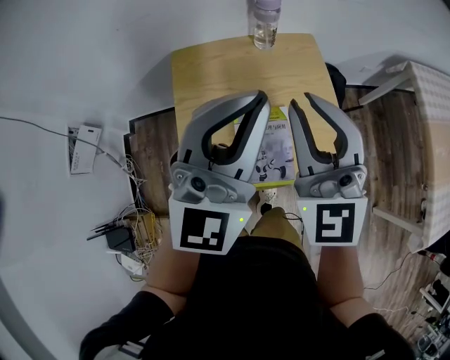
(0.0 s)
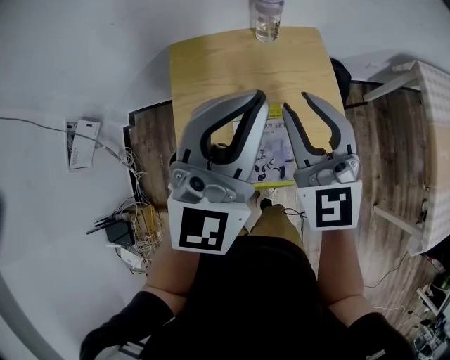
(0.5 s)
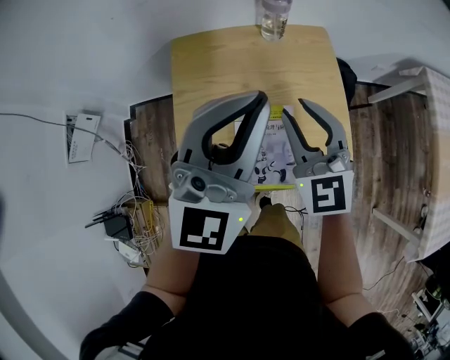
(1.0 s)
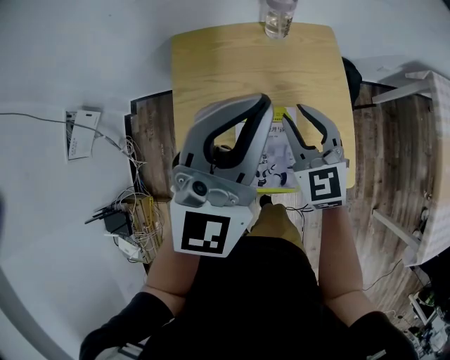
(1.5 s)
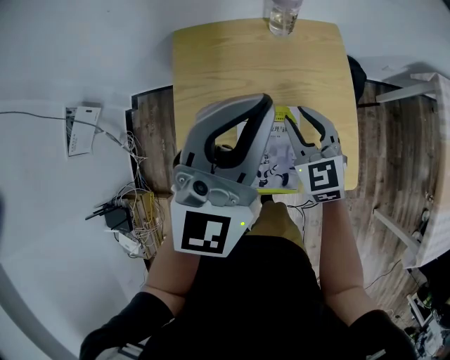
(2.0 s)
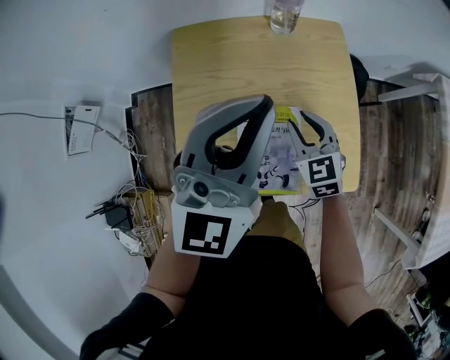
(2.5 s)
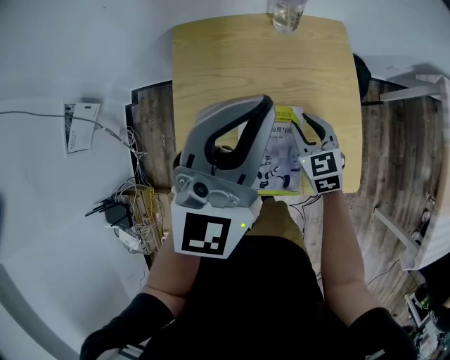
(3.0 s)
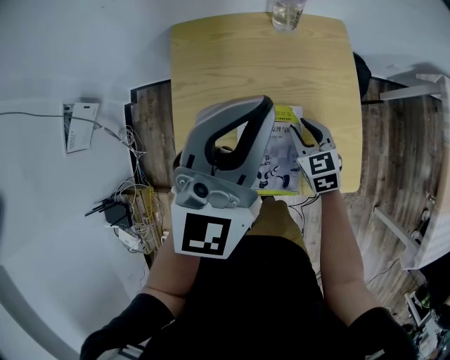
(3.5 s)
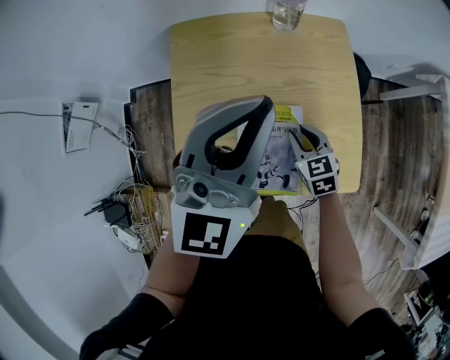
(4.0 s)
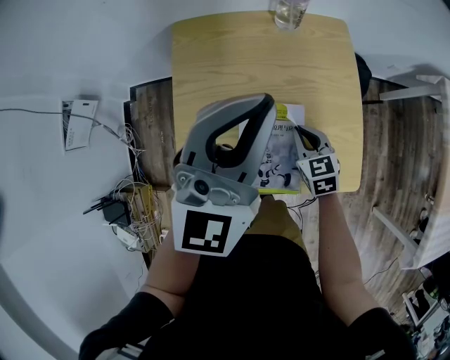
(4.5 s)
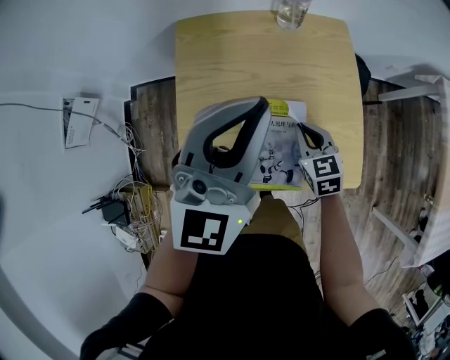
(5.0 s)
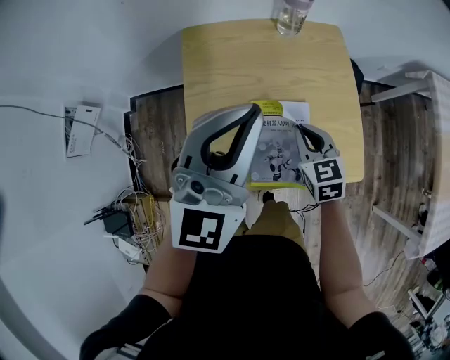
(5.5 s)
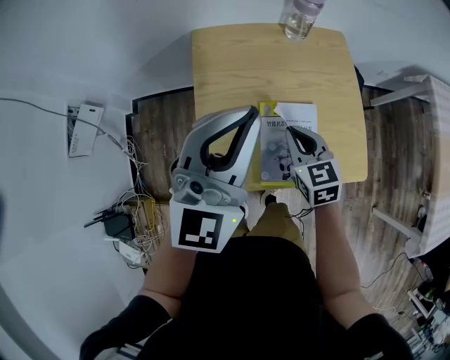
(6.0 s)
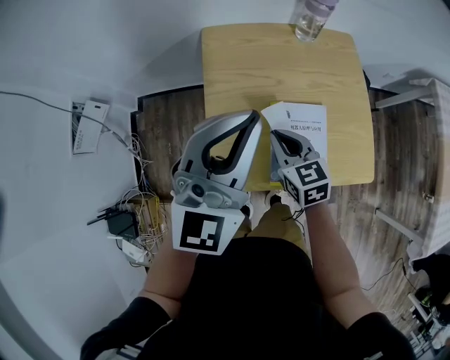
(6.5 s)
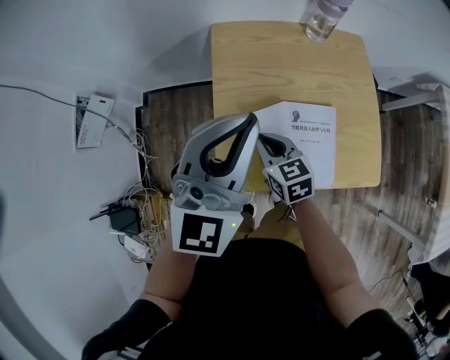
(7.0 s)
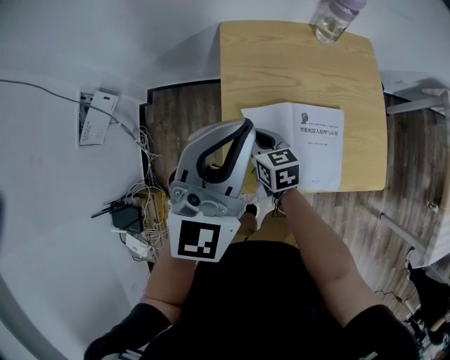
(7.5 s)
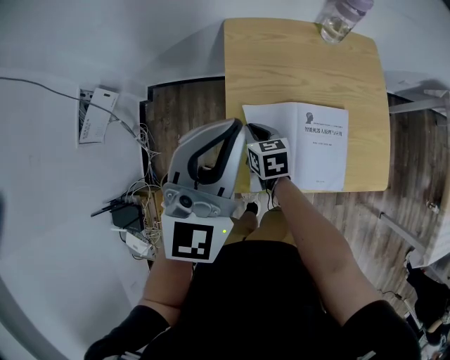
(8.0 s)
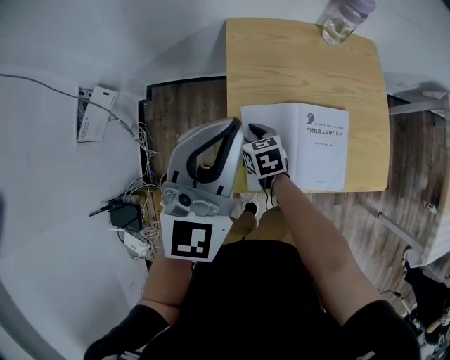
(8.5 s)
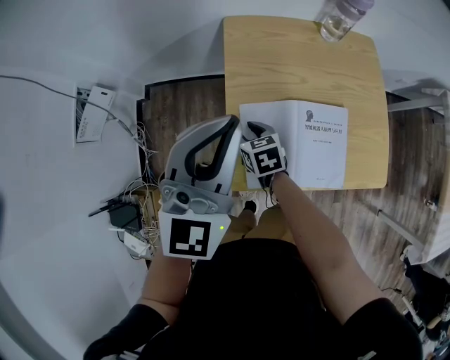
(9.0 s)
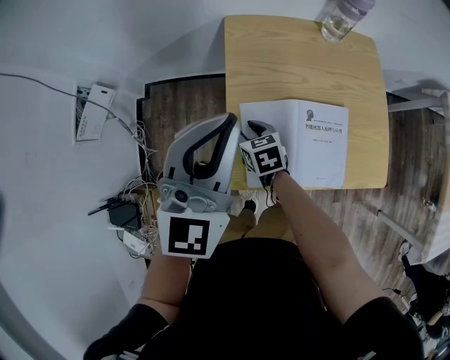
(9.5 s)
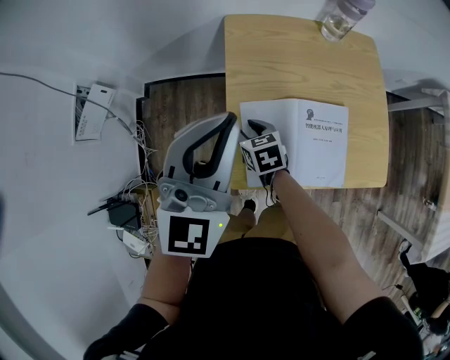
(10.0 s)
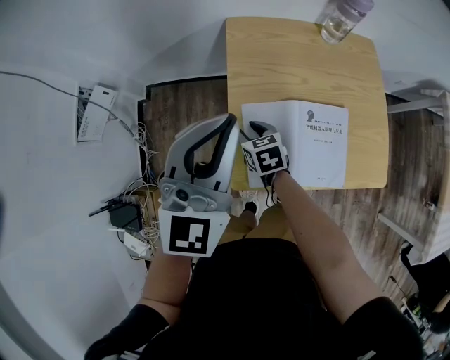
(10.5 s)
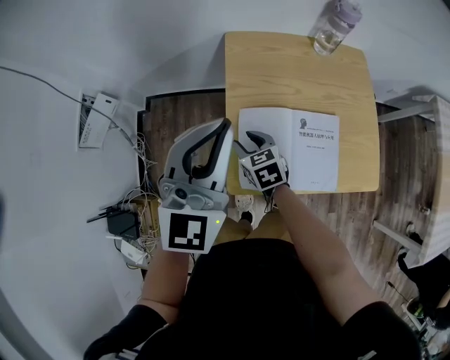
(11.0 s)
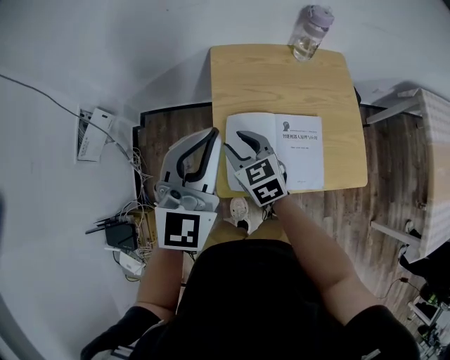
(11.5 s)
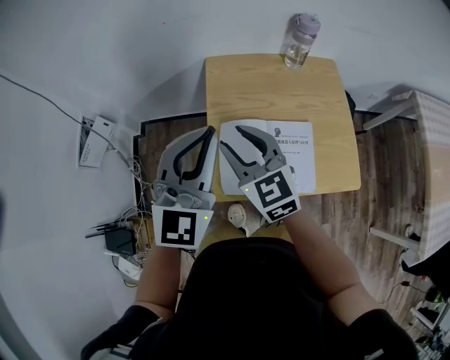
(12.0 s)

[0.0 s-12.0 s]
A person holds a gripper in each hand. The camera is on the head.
0.0 to 2.0 s: The left gripper goes some 10 cm downward and forward. The right gripper shifts roughly 25 cm downward, and angles its fingers downward, by roughly 30 degrees.
2.0 to 4.0 s: The right gripper moves downward, about 15 cm, and swivels some 20 degrees.
4.0 to 6.0 s: The left gripper travels to the left and backward by roughly 10 cm. The right gripper travels upward and to the left by some 15 cm.
6.0 to 8.0 s: The right gripper heads to the left and downward, covering approximately 20 cm, and swivels about 20 degrees. Meanwhile the left gripper is displaced to the left by approximately 10 cm.
8.0 to 10.0 s: The right gripper opens its fingers.
10.0 to 12.0 s: The left gripper ends up some 5 cm from where it was. Meanwhile the right gripper travels upward by some 25 cm, and angles its fingers upward, by about 30 degrees.

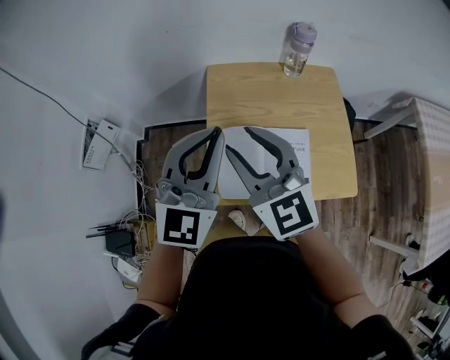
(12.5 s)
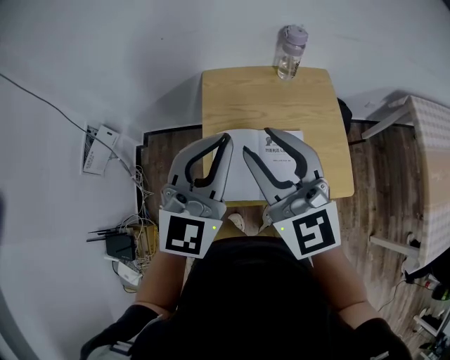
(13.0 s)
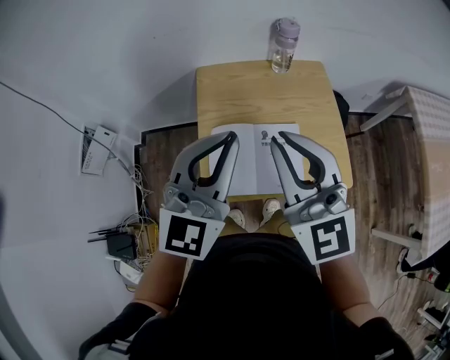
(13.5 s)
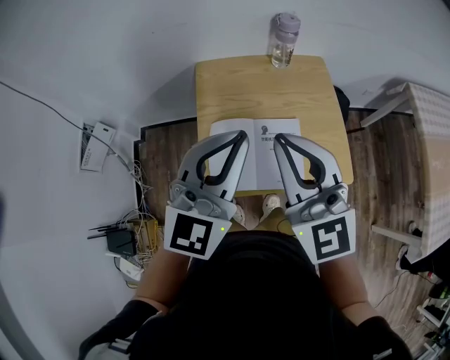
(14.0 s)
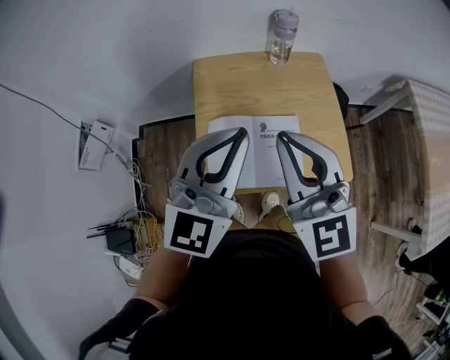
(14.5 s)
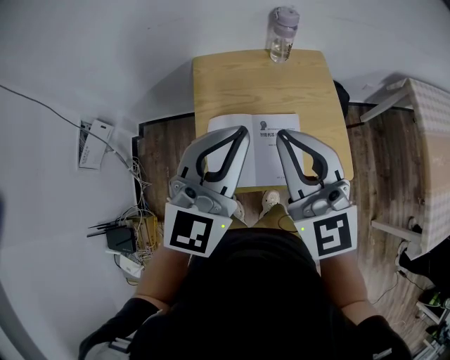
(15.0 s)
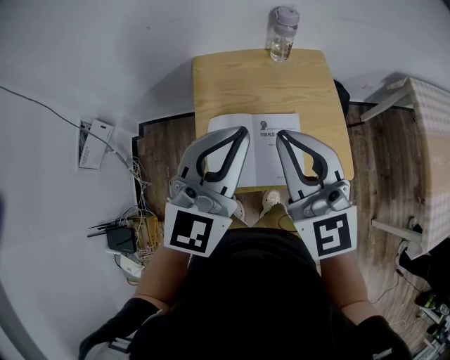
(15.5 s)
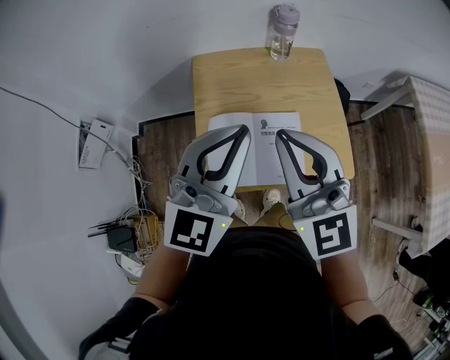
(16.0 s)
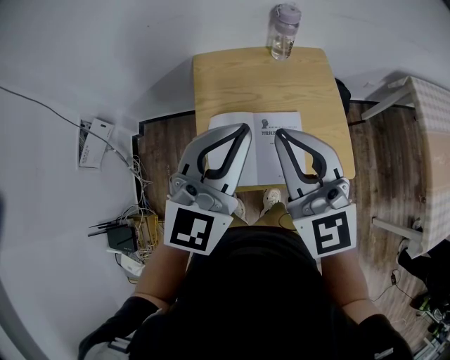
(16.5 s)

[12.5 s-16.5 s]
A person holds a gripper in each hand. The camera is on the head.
12.5 to 14.5 s: The right gripper moves to the right and upward, approximately 10 cm, and closes. Meanwhile the left gripper moves to the right, roughly 10 cm.
14.5 to 16.5 s: Neither gripper changes place.

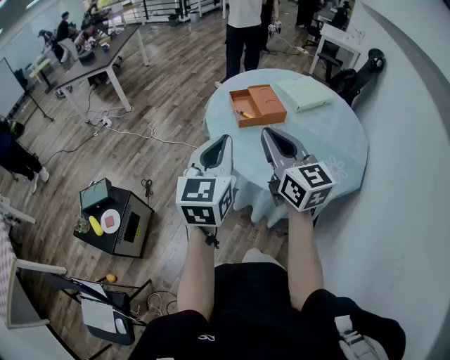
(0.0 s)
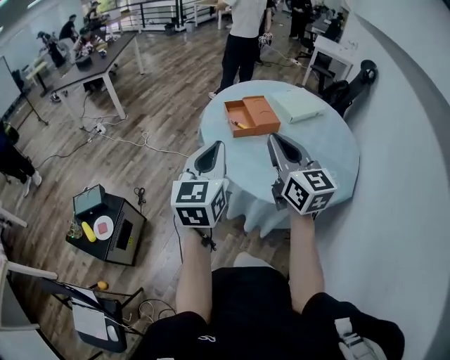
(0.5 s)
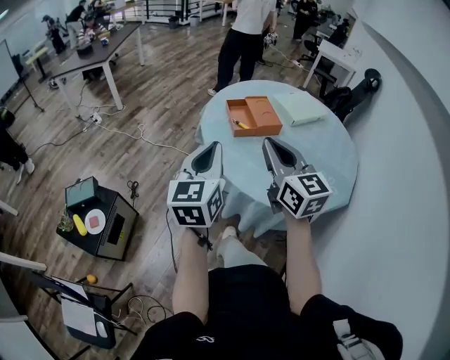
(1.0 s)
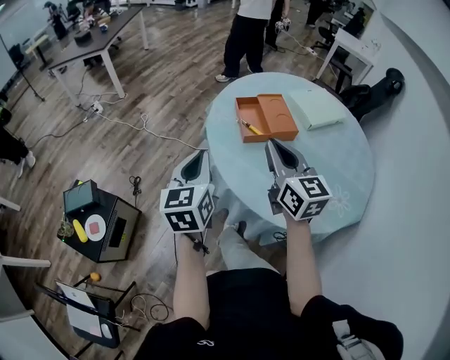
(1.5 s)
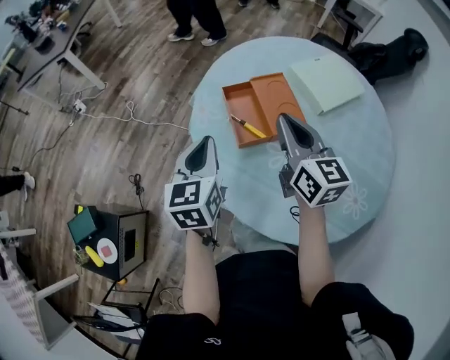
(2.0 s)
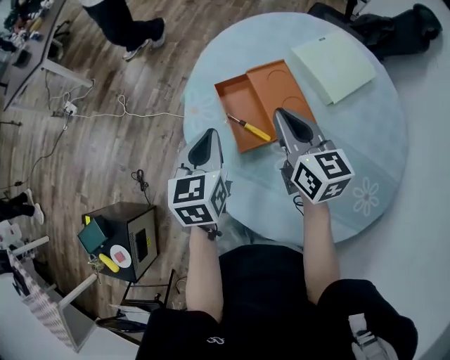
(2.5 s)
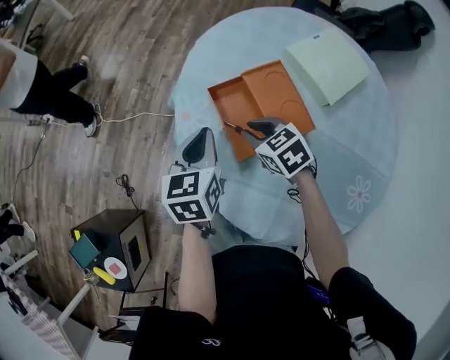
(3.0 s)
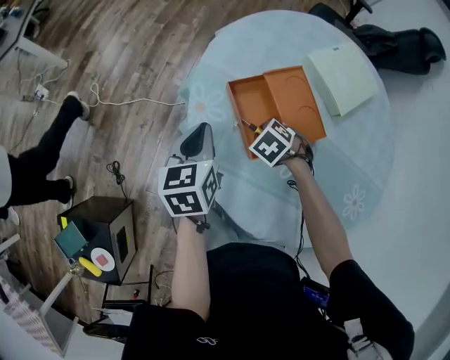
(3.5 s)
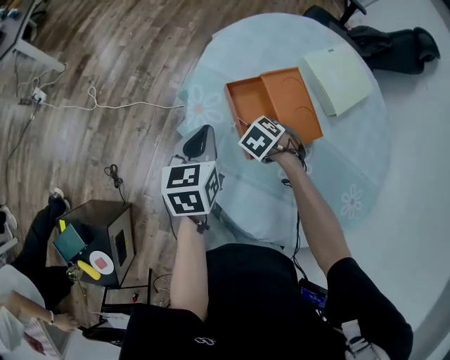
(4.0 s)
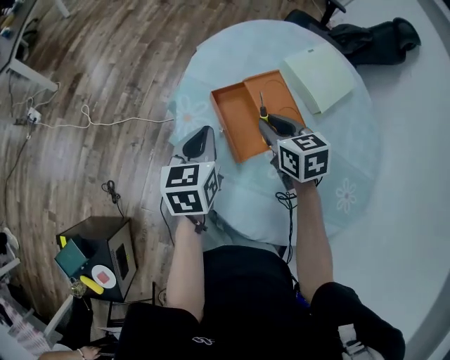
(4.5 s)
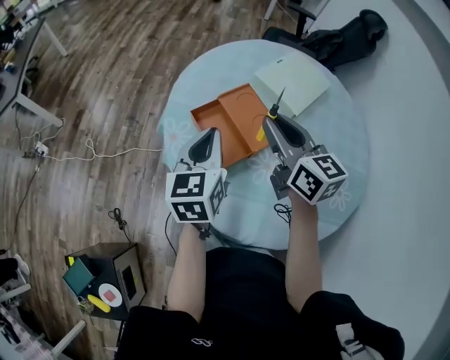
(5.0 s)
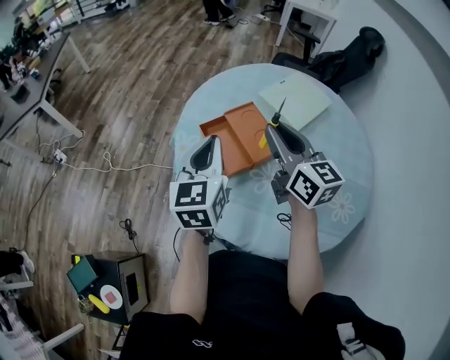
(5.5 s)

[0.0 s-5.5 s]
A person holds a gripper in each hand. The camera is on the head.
0.0 to 2.0 s: The right gripper moves forward, roughly 35 cm, while the left gripper moves forward and downward, approximately 40 cm, and turns by some 20 degrees.
2.0 to 3.5 s: The right gripper shifts approximately 30 cm downward, and tilts its fingers about 70 degrees downward, while the left gripper moves approximately 20 cm.
3.5 to 5.5 s: The right gripper moves upward, roughly 35 cm, and points its fingers approximately 80 degrees further upward. Meanwhile the left gripper moves upward, about 20 cm, and swivels approximately 30 degrees.

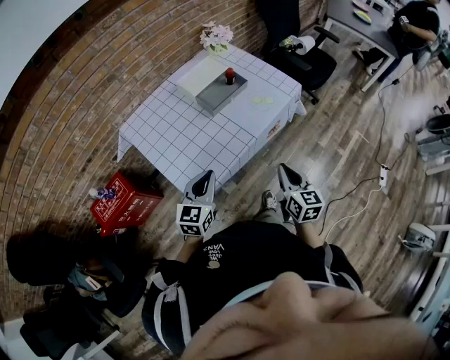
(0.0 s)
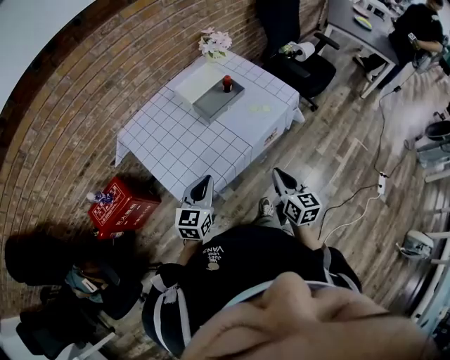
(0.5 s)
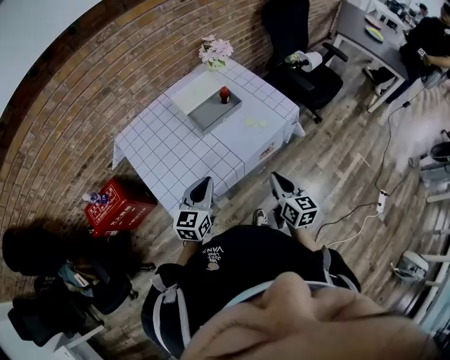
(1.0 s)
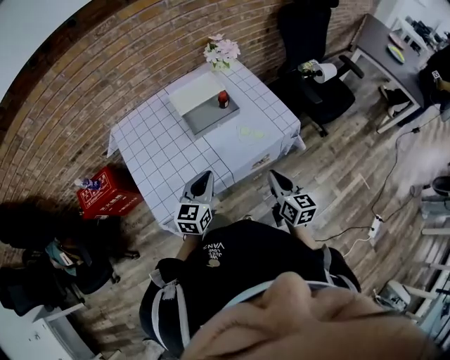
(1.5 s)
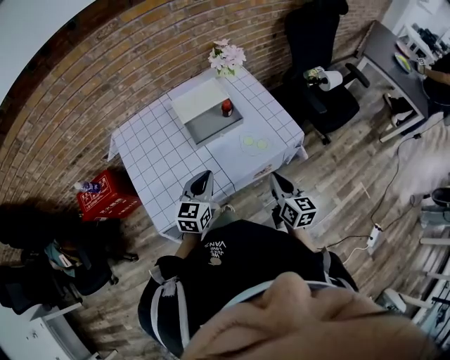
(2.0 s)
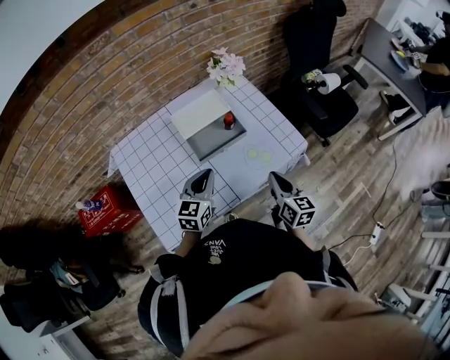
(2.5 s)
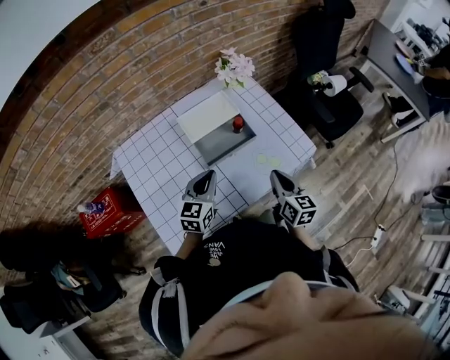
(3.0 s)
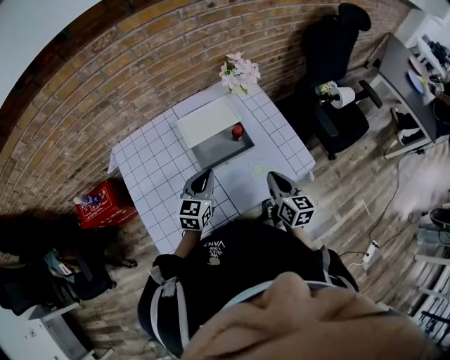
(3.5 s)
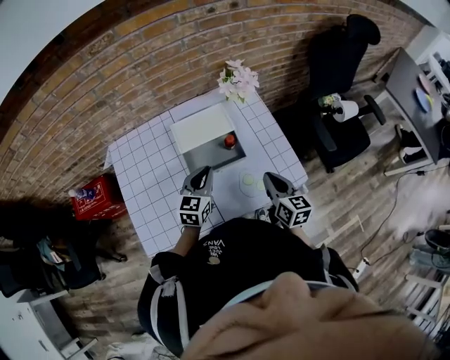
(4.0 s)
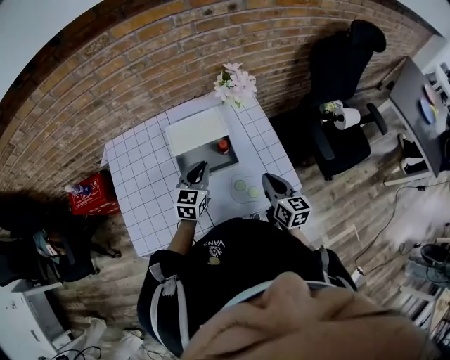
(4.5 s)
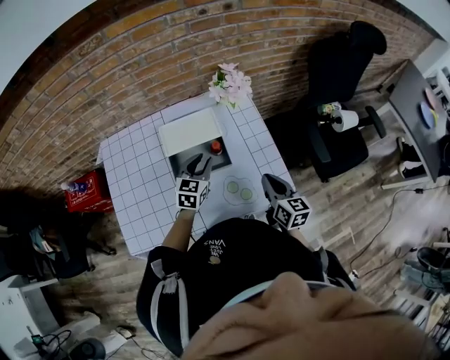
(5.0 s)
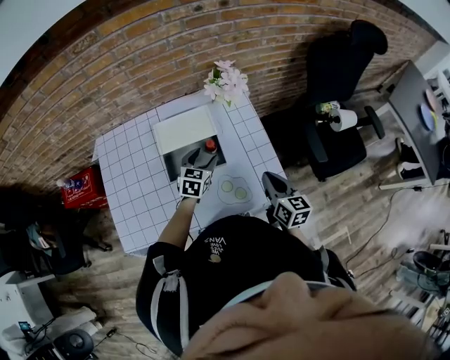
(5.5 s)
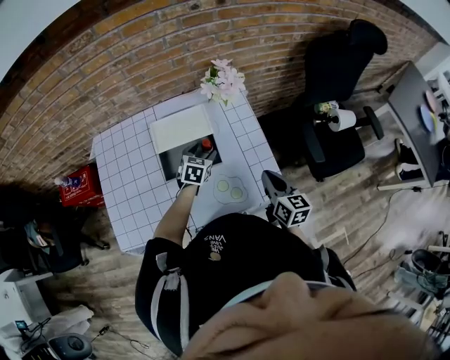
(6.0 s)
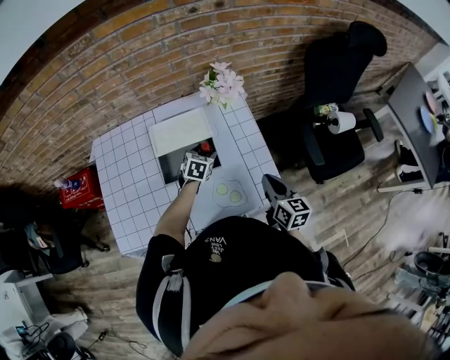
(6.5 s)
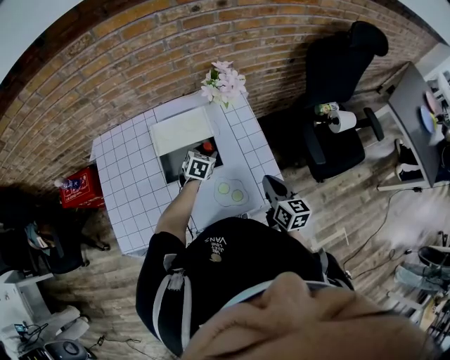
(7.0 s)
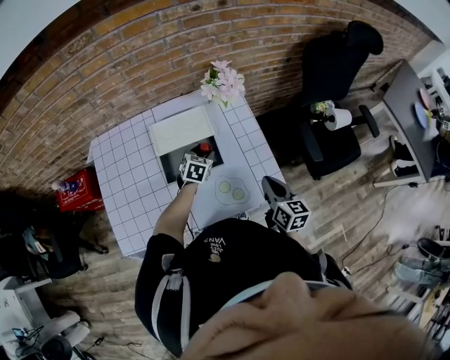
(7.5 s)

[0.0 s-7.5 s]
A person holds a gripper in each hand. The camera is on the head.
0.0 to 2.0 s: Both grippers move forward and to the right, some 20 cm.
2.0 to 4.0 s: The two grippers go roughly 20 cm forward.
4.0 to 5.5 s: The right gripper is displaced to the right by some 10 cm. The left gripper heads forward, to the right and downward, covering about 15 cm, and opens.
5.5 to 7.5 s: The left gripper heads downward, covering about 5 cm.
